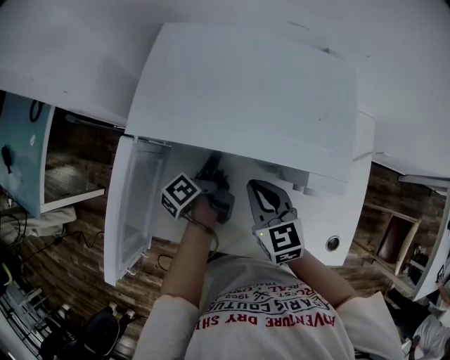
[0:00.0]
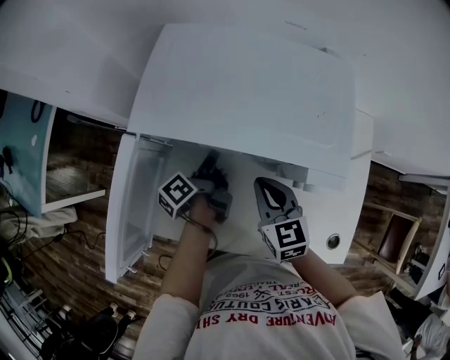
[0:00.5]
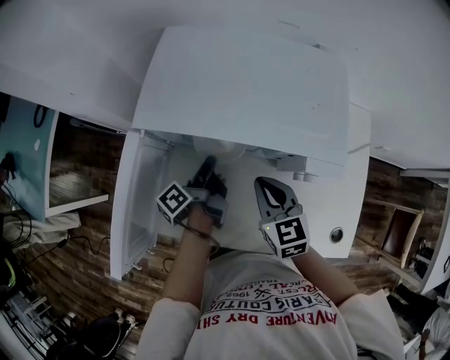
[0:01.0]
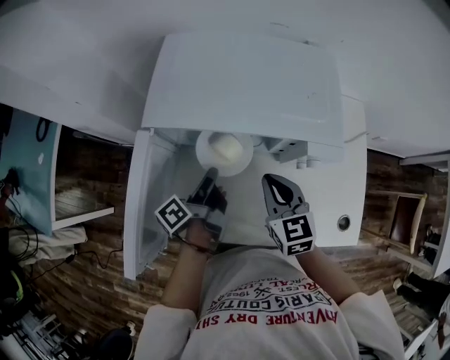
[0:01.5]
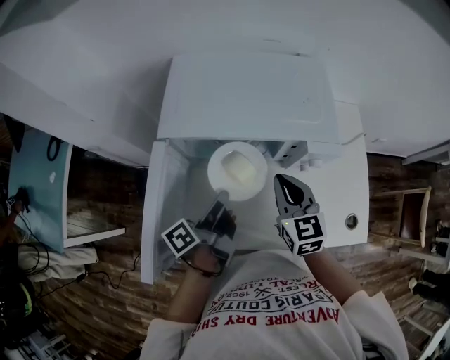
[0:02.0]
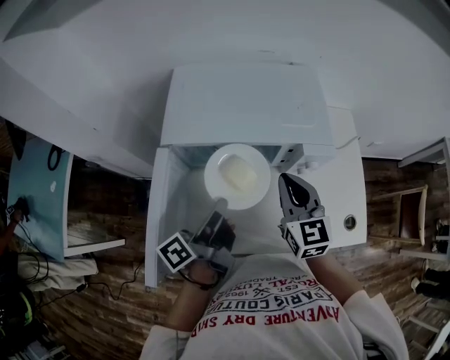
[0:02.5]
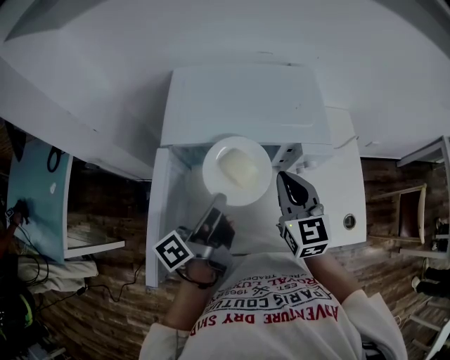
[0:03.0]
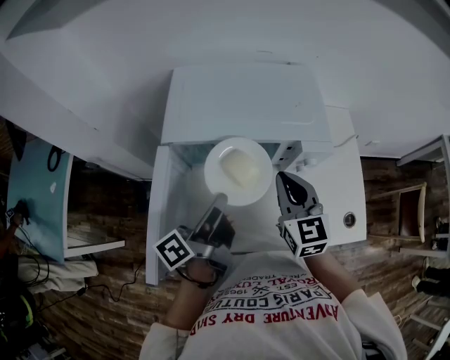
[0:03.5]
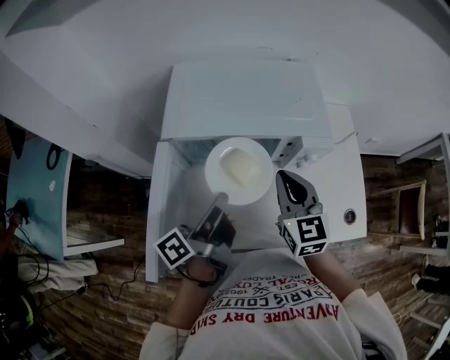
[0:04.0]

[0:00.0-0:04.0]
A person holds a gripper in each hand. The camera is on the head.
0:00.0 to 0:02.0: The right gripper is displaced upward by roughly 5 cm. Meanwhile the left gripper is displaced upward and backward by roughly 15 cm, and rotates roughly 20 degrees.
0:02.0 to 0:04.0: The left gripper goes about 5 cm upward. The right gripper changes place by approximately 5 cm.

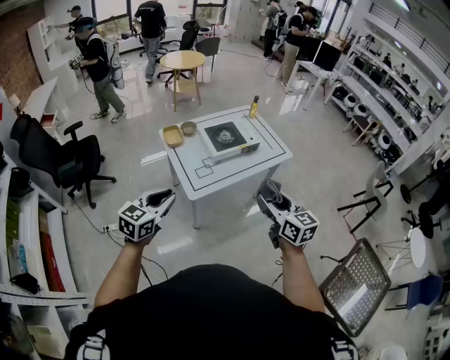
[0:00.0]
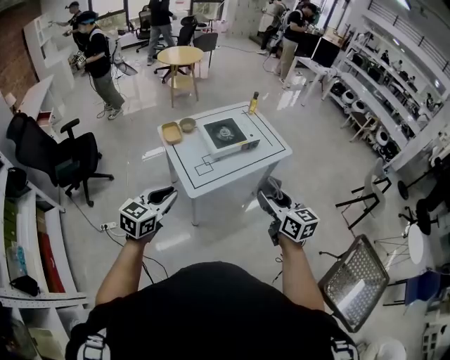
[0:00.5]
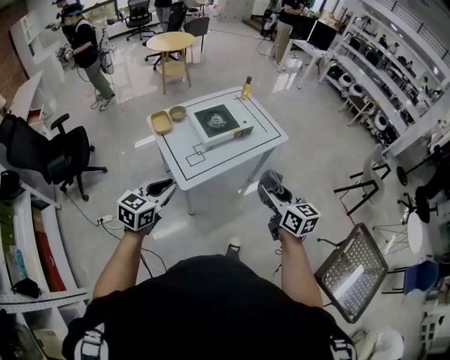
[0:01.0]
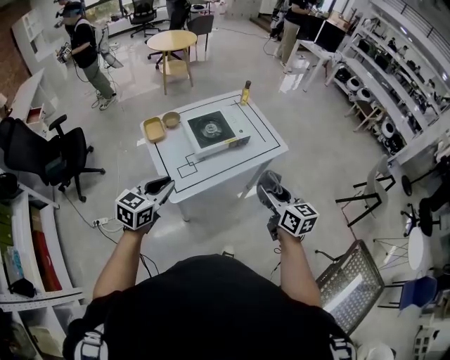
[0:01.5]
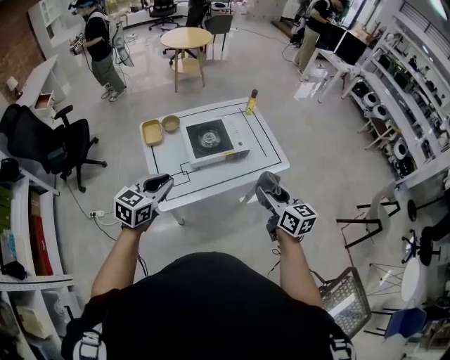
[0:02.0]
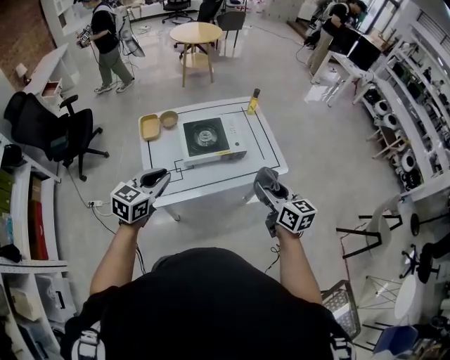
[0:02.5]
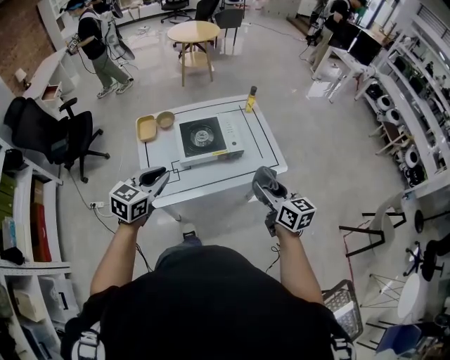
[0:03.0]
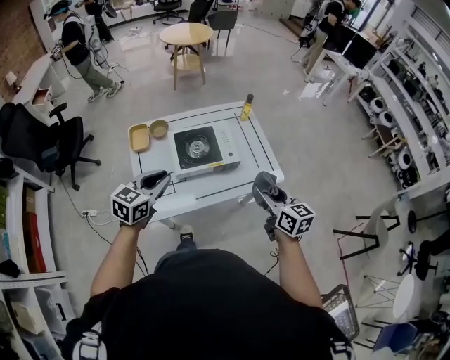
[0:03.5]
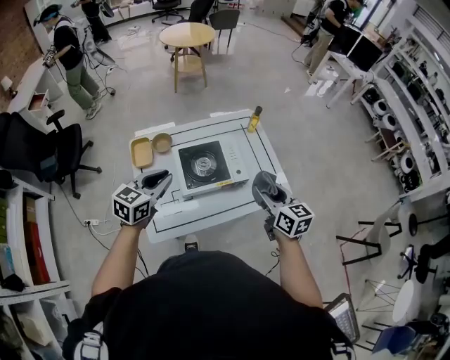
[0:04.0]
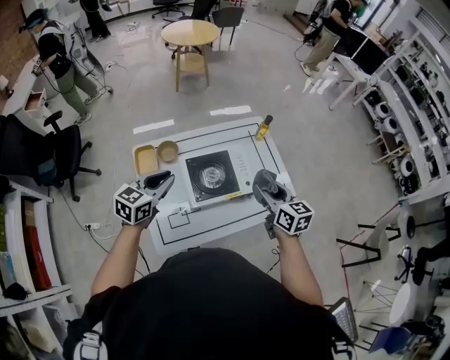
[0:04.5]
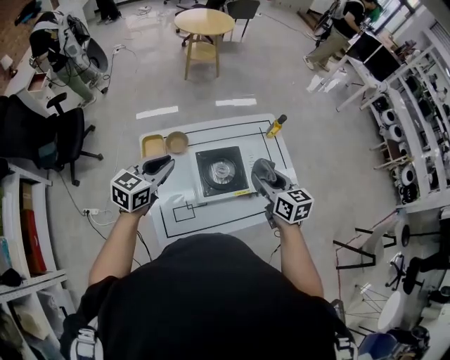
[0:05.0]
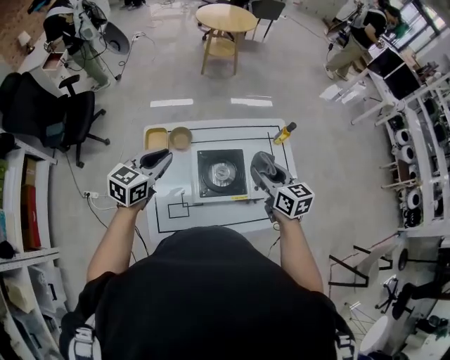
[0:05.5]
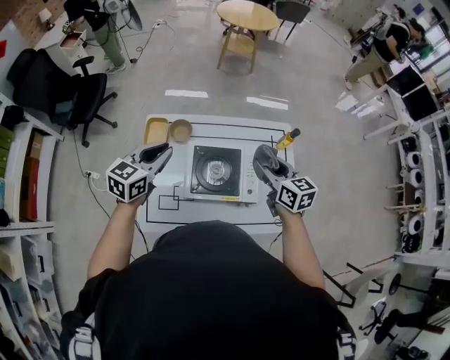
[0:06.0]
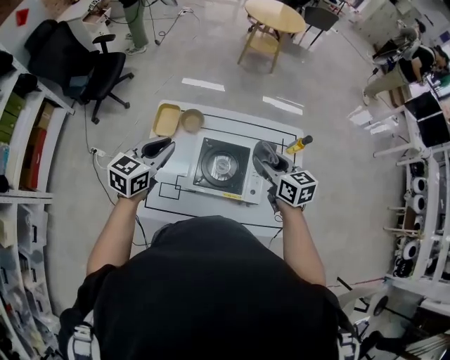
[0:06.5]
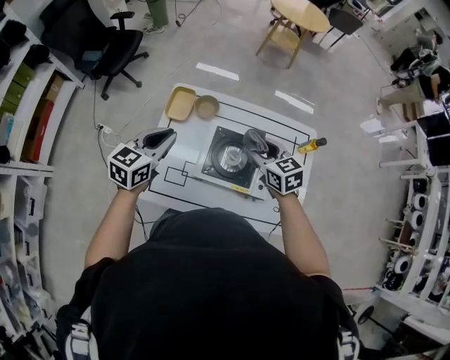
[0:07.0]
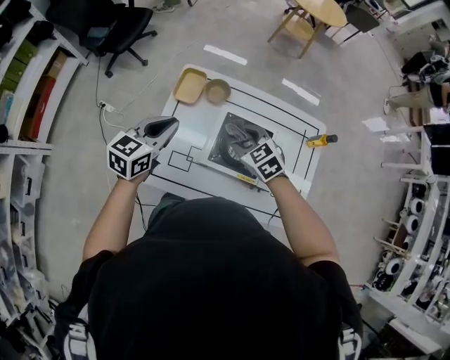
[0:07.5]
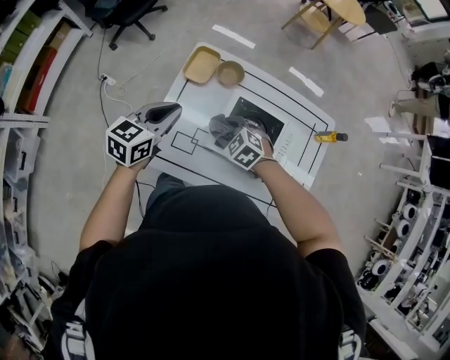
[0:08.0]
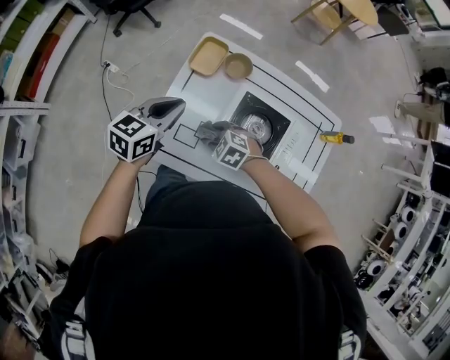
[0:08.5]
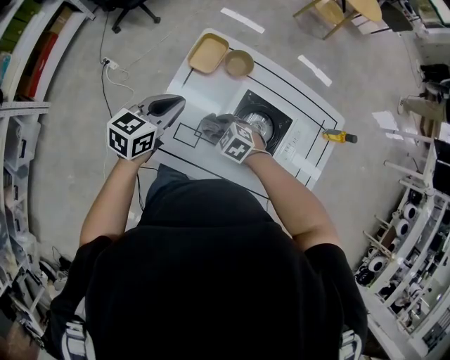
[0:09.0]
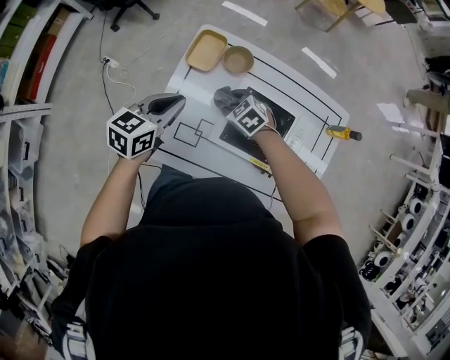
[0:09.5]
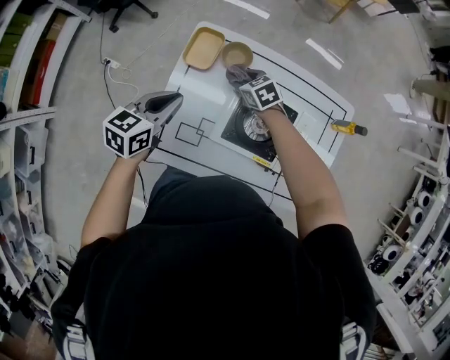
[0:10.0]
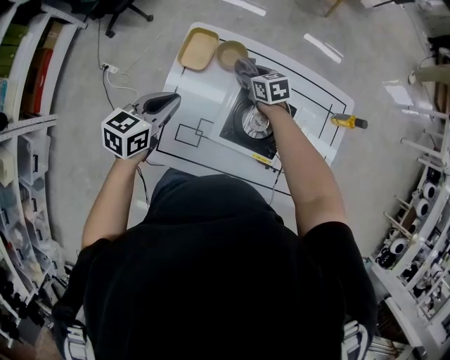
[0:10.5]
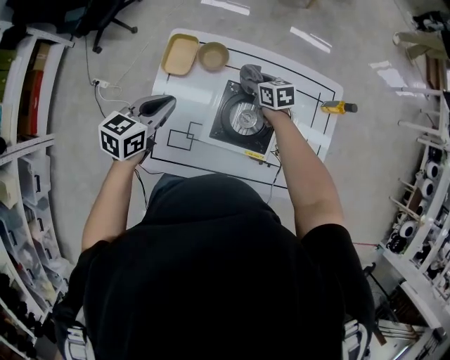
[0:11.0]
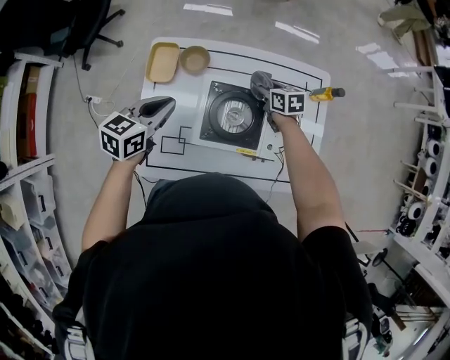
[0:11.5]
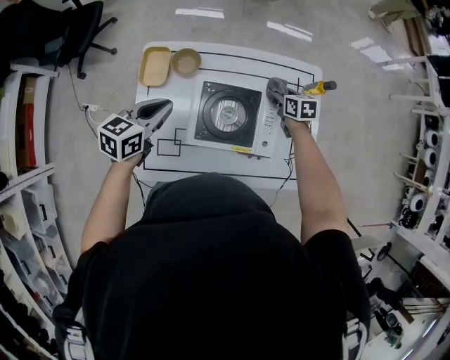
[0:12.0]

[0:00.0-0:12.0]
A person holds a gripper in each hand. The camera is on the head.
0:00.0 to 0:02.0: The grippers both shift forward and to the right by roughly 30 cm.
0:02.0 to 0:04.0: Both grippers move forward, roughly 25 cm.
0:04.0 to 0:06.0: The right gripper heads forward, covering some 25 cm, and rotates about 20 degrees; the left gripper goes roughly 15 cm forward.
0:06.0 to 0:08.0: The right gripper ends up some 35 cm from where it was, and tilts its fingers some 30 degrees downward, while the left gripper moves roughly 15 cm.
0:08.0 to 0:10.0: The right gripper shifts about 20 cm forward and downward, and rotates approximately 30 degrees. Meanwhile the left gripper heads downward, covering about 5 cm.
0:10.0 to 0:12.0: The right gripper moves to the right, approximately 30 cm, and turns by approximately 40 degrees, while the left gripper is displaced to the right by roughly 10 cm.

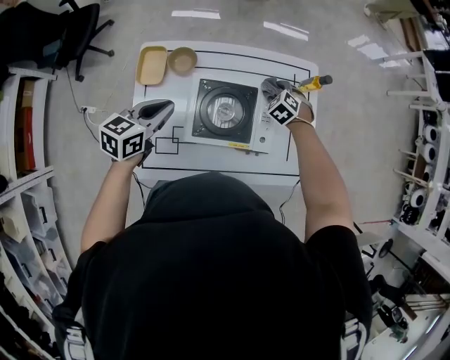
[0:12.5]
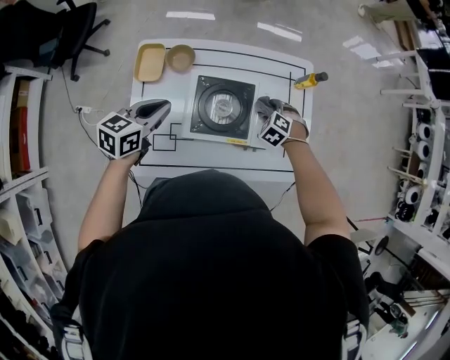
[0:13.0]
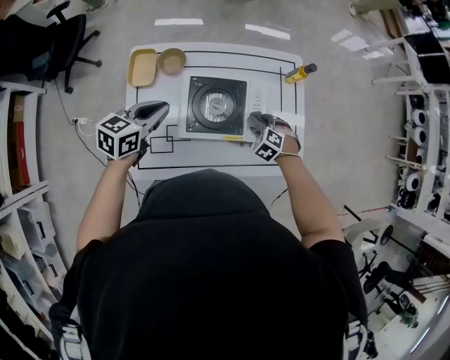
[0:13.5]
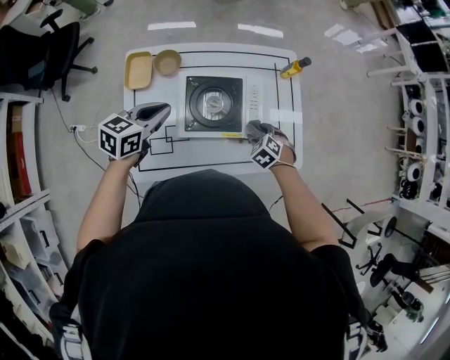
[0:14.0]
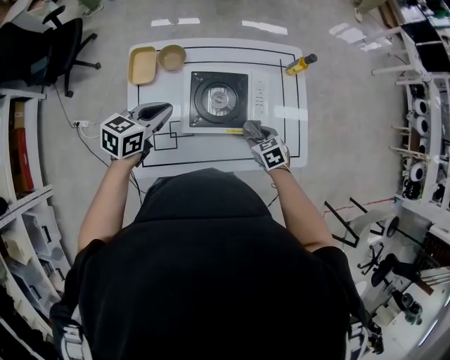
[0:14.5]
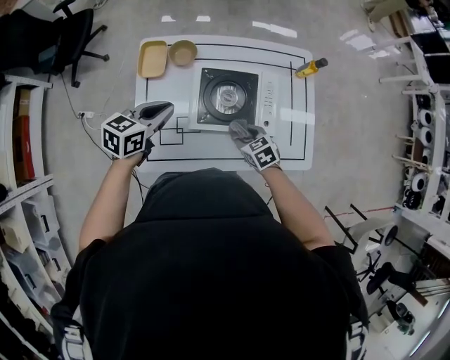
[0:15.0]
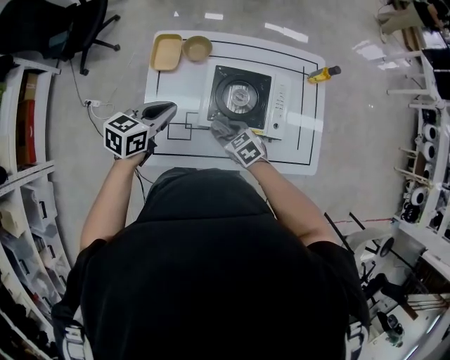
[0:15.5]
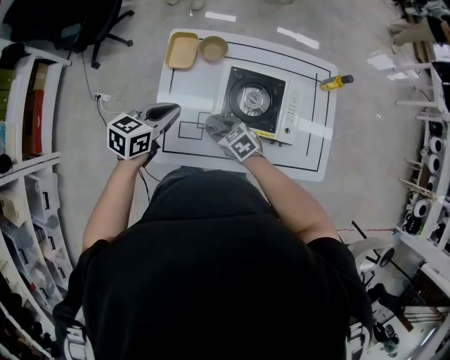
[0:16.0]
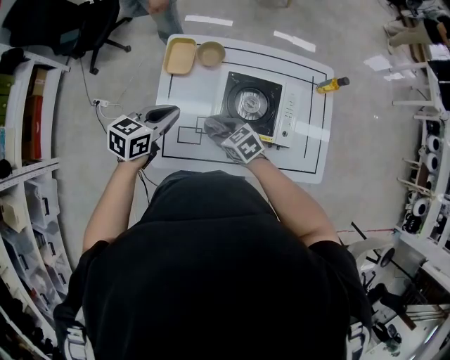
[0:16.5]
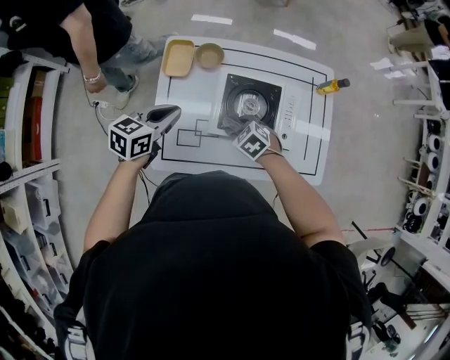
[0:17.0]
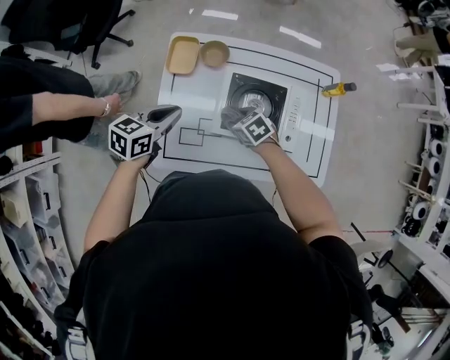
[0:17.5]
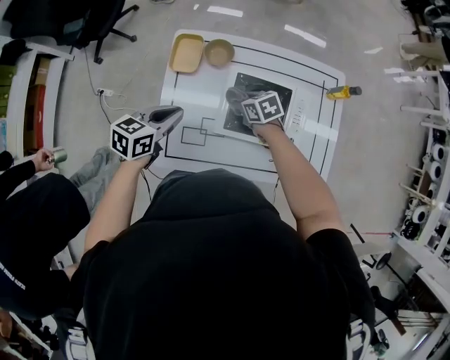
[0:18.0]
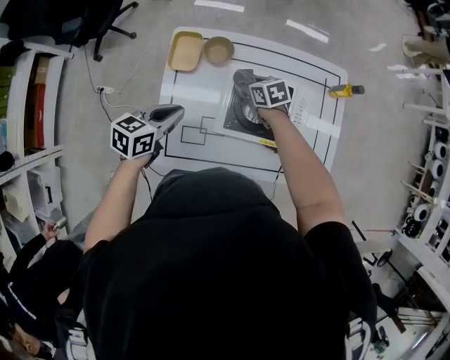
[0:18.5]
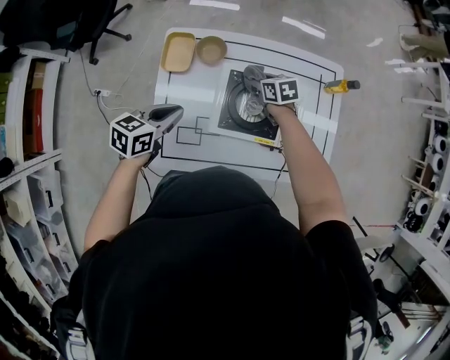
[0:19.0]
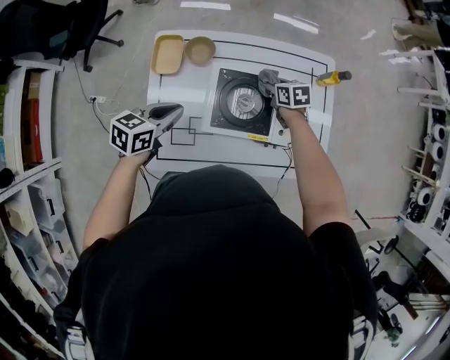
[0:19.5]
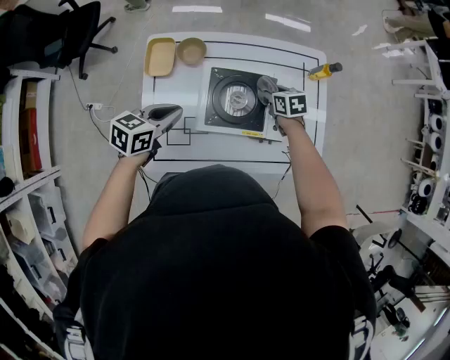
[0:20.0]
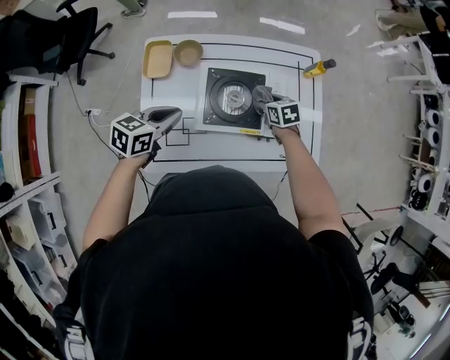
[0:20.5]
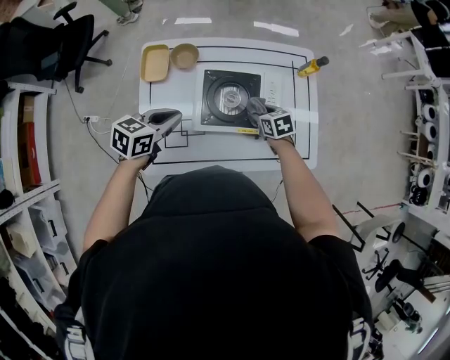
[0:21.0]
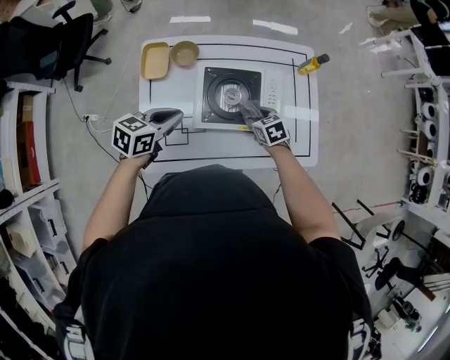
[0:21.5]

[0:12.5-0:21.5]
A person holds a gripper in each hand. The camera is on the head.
0:12.5 to 0:14.5: The left gripper shifts by about 5 cm; the right gripper is displaced backward by about 25 cm, and rotates some 40 degrees.
0:14.5 to 0:17.0: The left gripper moves to the left, about 10 cm, while the right gripper goes about 20 cm to the left, and turns by approximately 30 degrees.
0:17.0 to 0:19.5: The right gripper travels forward and to the right by some 25 cm, and rotates around the line of its fingers by about 40 degrees, clockwise from behind. Meanwhile the left gripper ends up approximately 5 cm from where it was.
0:19.5 to 0:21.5: The right gripper is displaced backward by about 15 cm, while the left gripper ends up about 5 cm from where it was.

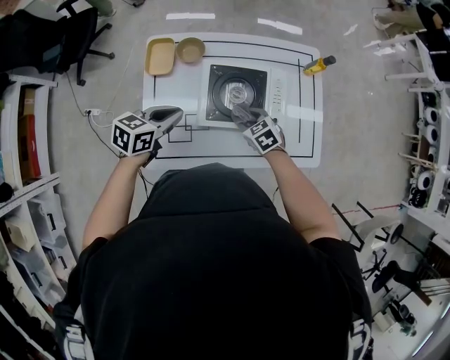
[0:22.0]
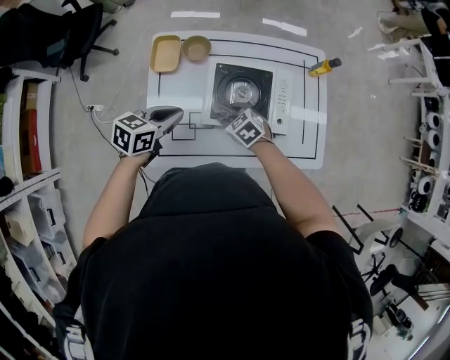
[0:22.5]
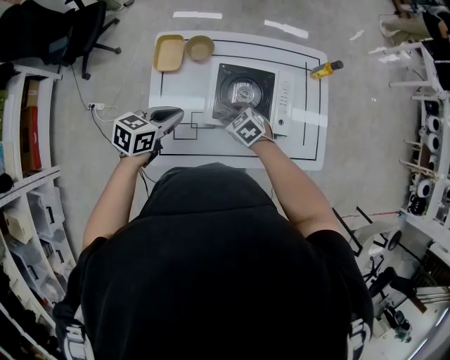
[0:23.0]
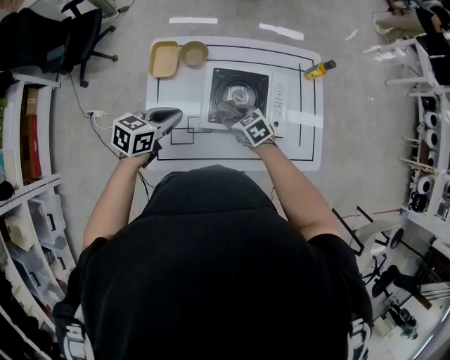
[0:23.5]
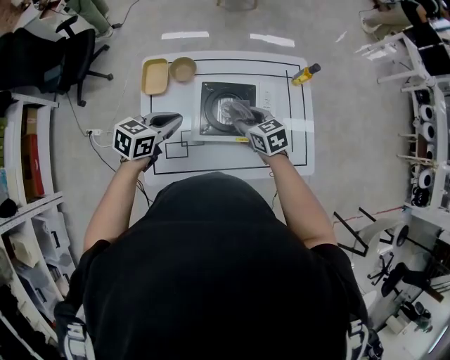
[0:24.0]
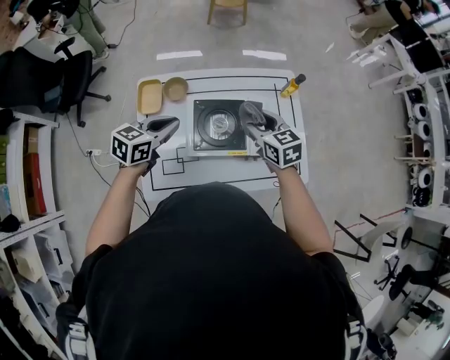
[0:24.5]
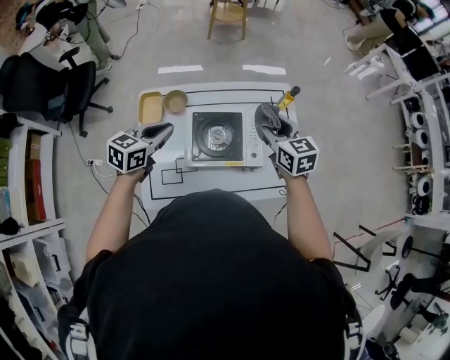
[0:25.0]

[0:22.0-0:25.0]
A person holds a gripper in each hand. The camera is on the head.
0:22.0 to 0:23.5: The right gripper travels to the left by about 5 cm.
0:23.5 to 0:25.0: The right gripper travels upward and to the right by approximately 30 cm, and turns by about 40 degrees; the left gripper shifts approximately 10 cm upward and forward.
